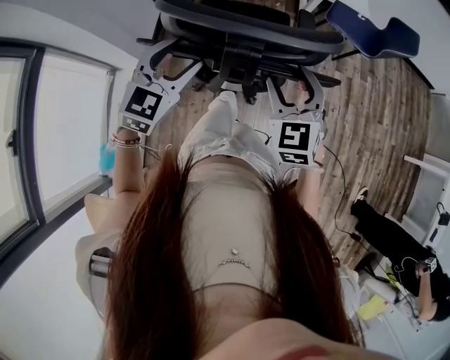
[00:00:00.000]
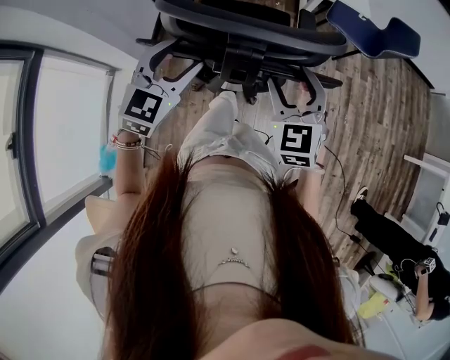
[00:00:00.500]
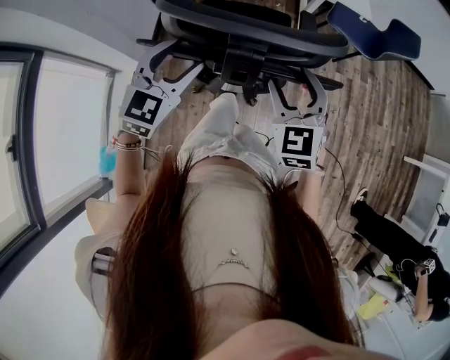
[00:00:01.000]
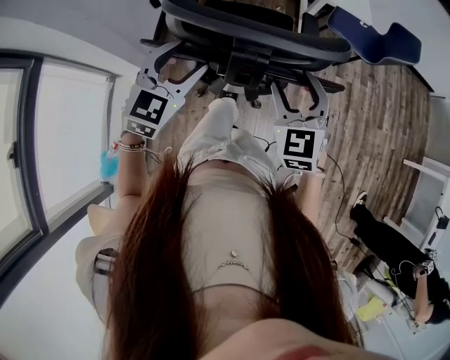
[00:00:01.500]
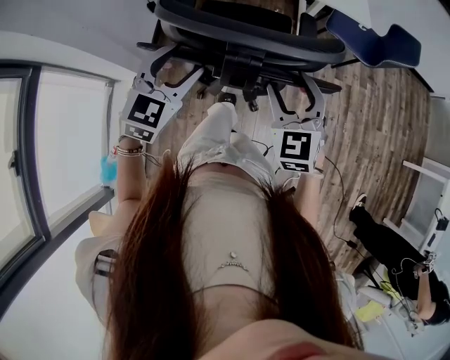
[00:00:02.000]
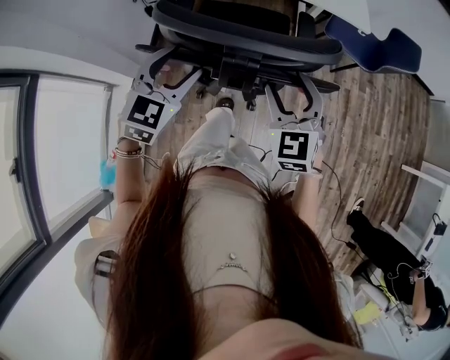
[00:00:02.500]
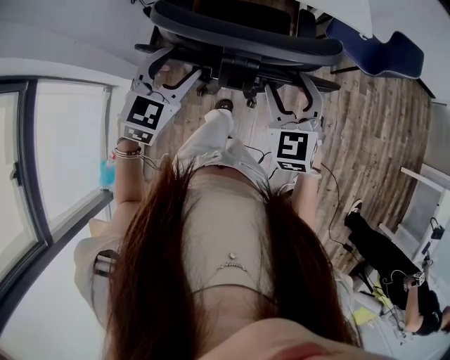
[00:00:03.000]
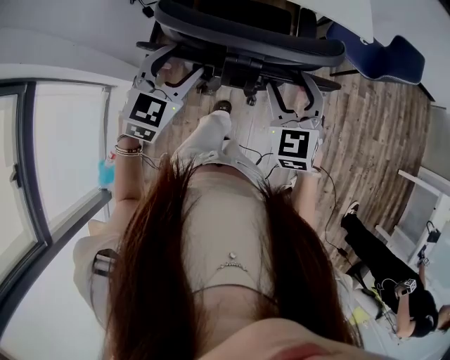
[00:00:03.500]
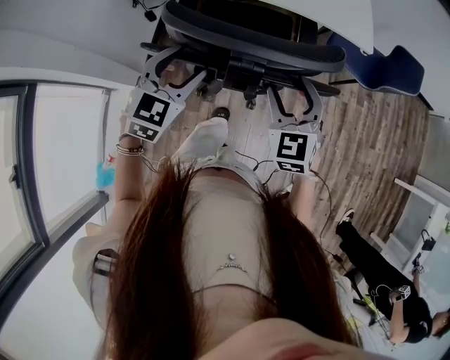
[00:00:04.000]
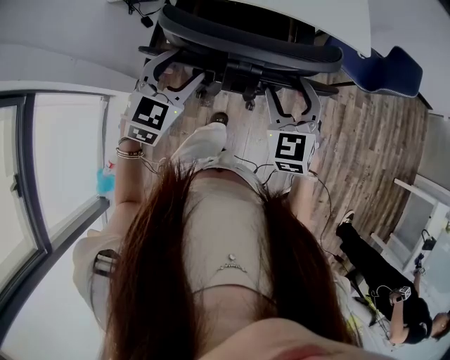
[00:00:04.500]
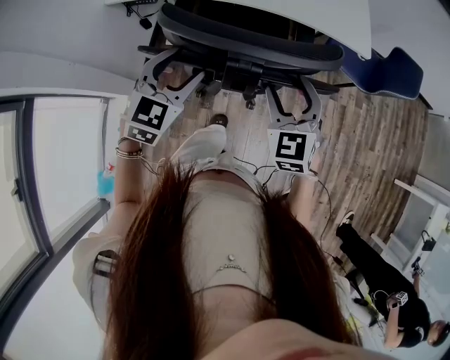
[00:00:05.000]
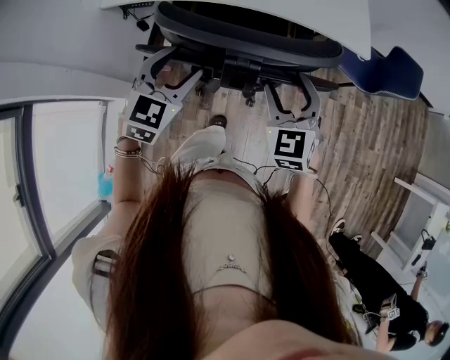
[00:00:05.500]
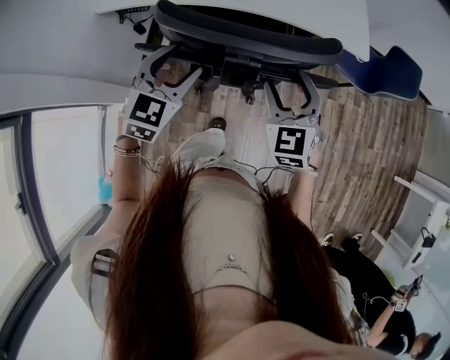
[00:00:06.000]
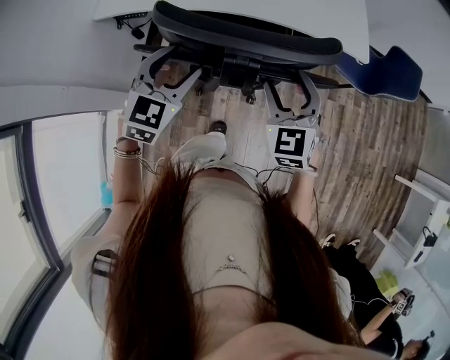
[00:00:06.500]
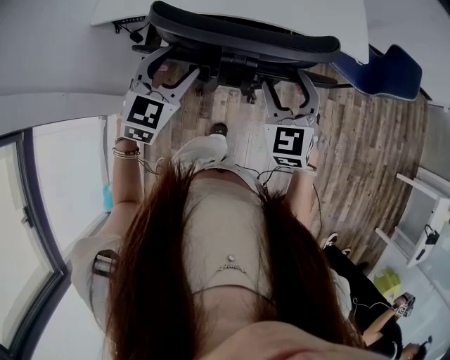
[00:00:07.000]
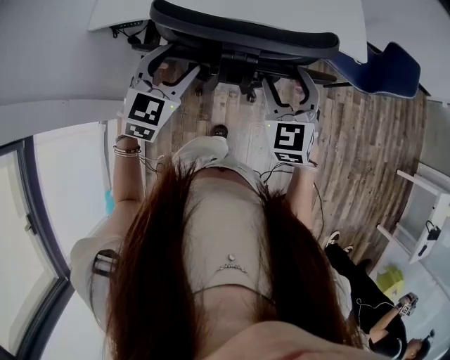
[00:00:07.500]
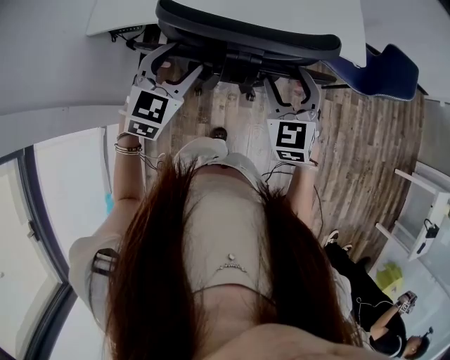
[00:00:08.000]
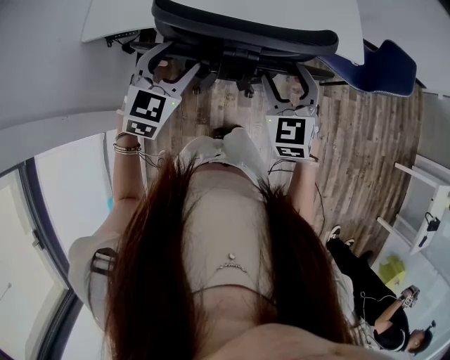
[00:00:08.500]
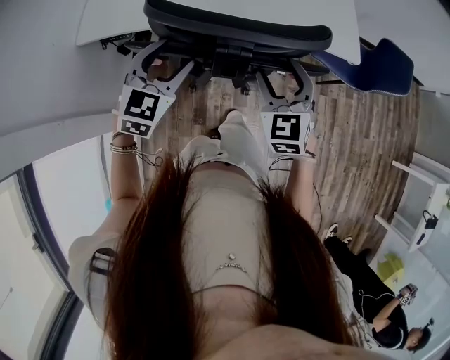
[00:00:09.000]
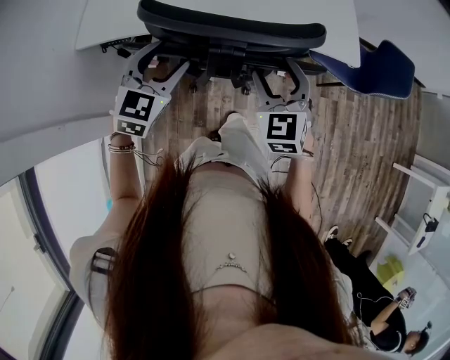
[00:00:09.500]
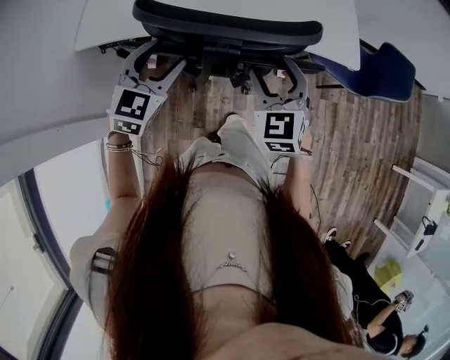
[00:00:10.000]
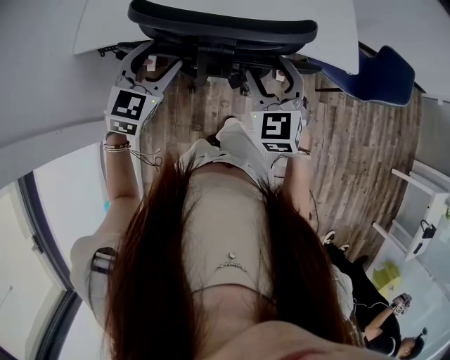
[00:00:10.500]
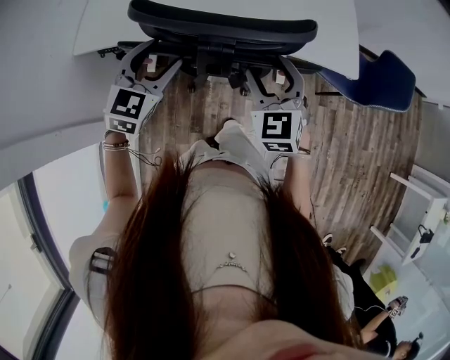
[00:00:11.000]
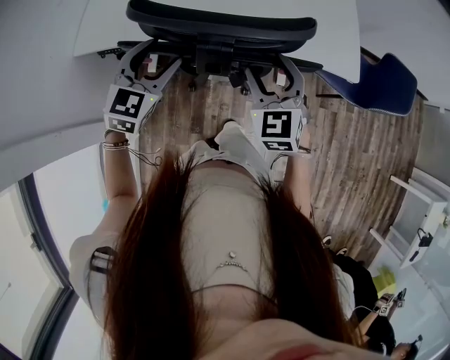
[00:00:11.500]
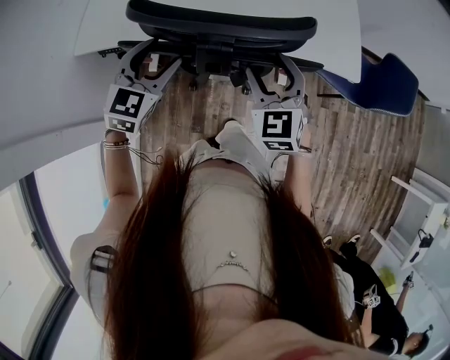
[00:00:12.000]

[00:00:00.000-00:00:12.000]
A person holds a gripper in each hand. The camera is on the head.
00:00:00.000 to 00:00:02.000: Both grippers travel together forward, approximately 5 cm.
00:00:02.000 to 00:00:04.000: Both grippers travel together forward, some 10 cm.
00:00:04.000 to 00:00:06.000: Both grippers move forward, about 10 cm.
00:00:06.000 to 00:00:08.000: Both grippers move forward, roughly 10 cm.
00:00:08.000 to 00:00:10.000: The two grippers go approximately 5 cm forward.
00:00:10.000 to 00:00:12.000: The grippers make only small movements.

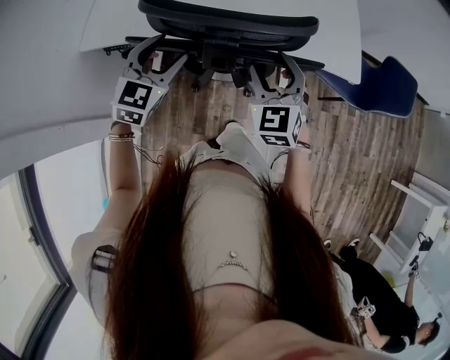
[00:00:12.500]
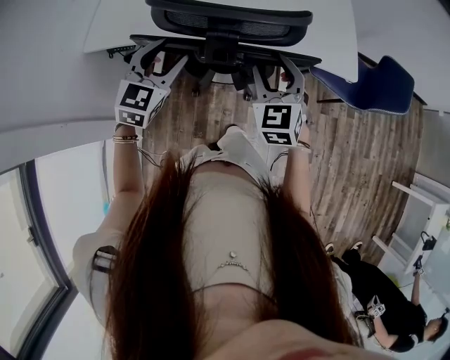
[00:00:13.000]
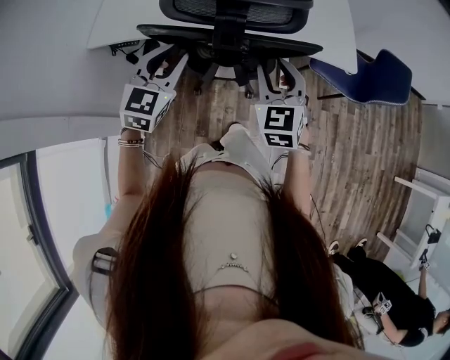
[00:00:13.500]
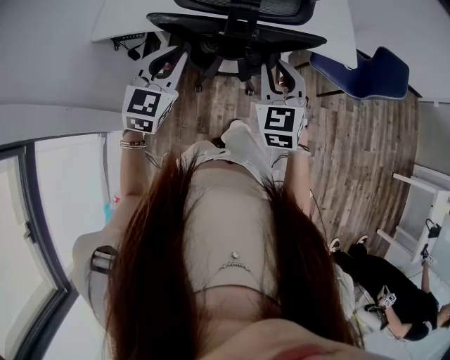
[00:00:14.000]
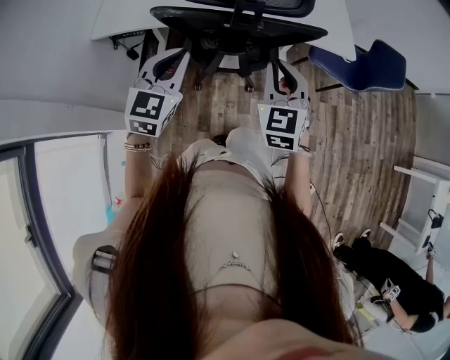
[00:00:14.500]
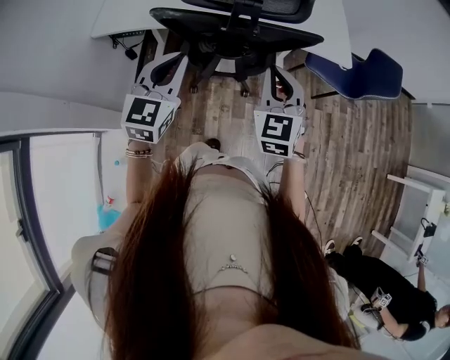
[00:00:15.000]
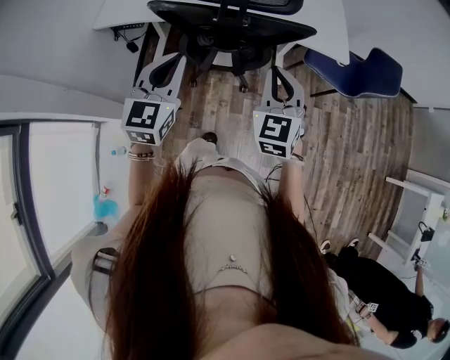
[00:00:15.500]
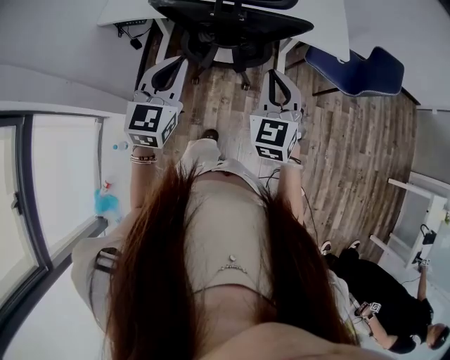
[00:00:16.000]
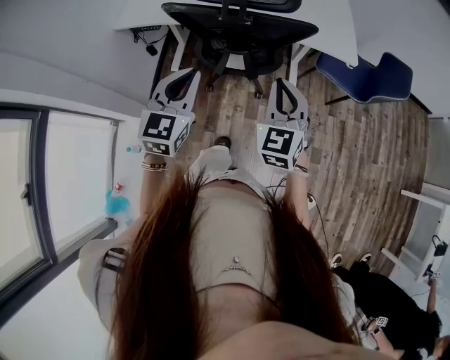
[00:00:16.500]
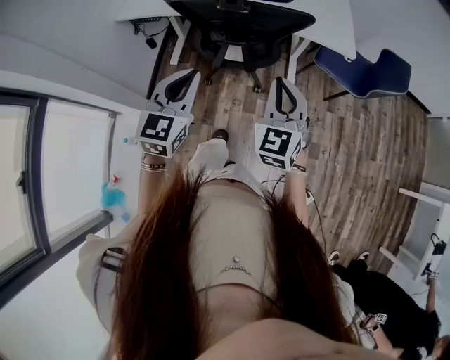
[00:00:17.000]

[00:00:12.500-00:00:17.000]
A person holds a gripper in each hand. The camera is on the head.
00:00:12.500 to 00:00:14.500: The grippers both shift backward by approximately 15 cm. The right gripper closes its fingers. The left gripper closes its fingers.
00:00:14.500 to 00:00:17.000: The two grippers go about 15 cm backward and to the right.

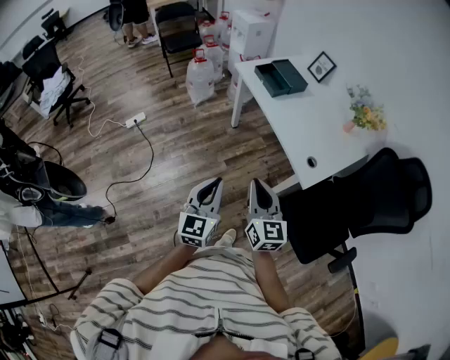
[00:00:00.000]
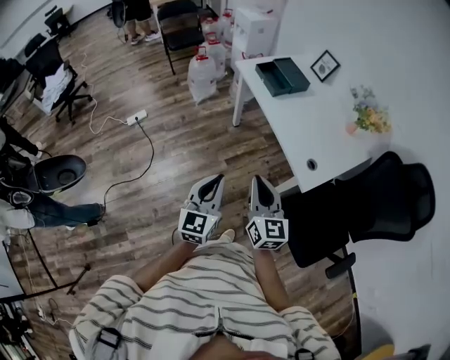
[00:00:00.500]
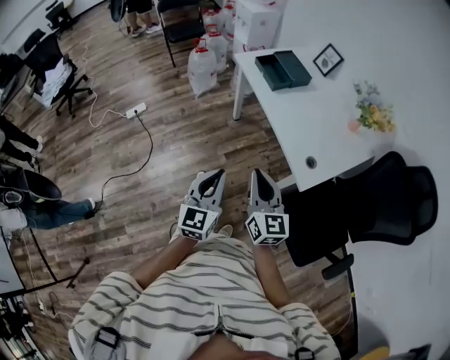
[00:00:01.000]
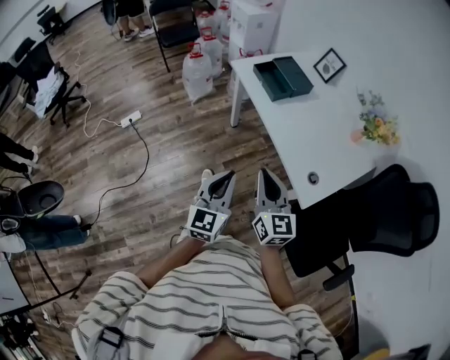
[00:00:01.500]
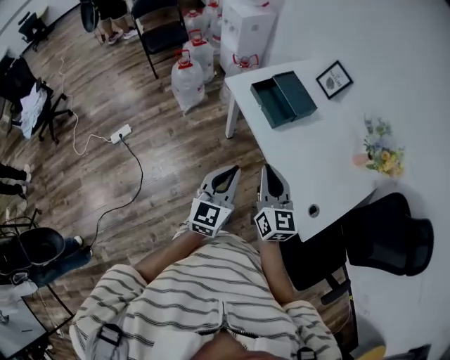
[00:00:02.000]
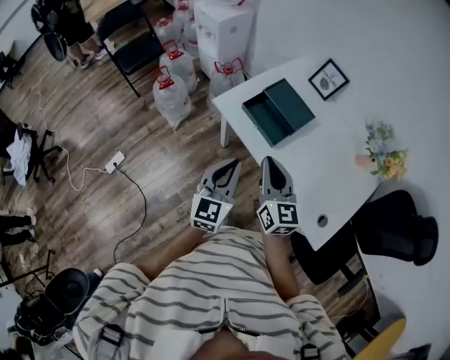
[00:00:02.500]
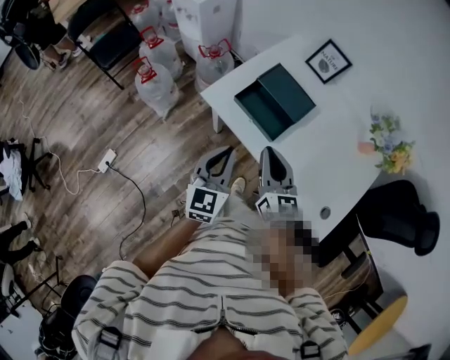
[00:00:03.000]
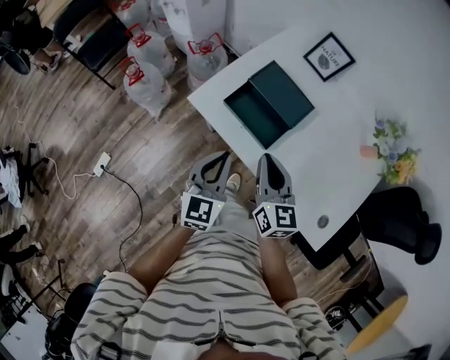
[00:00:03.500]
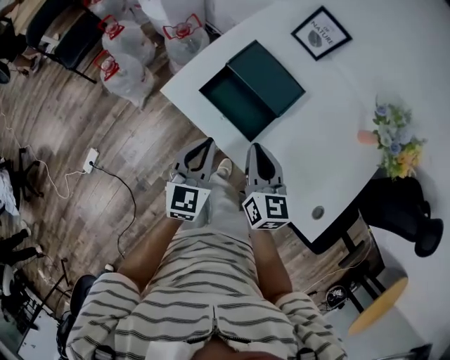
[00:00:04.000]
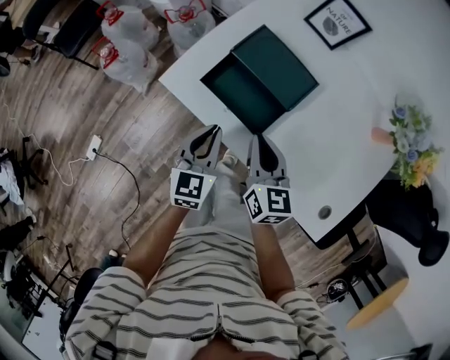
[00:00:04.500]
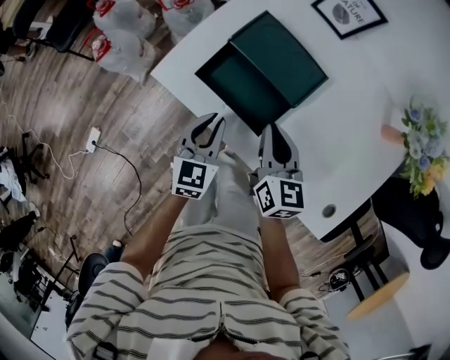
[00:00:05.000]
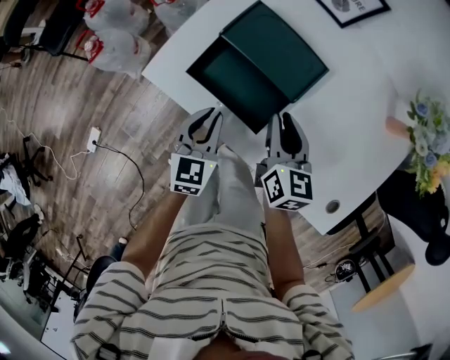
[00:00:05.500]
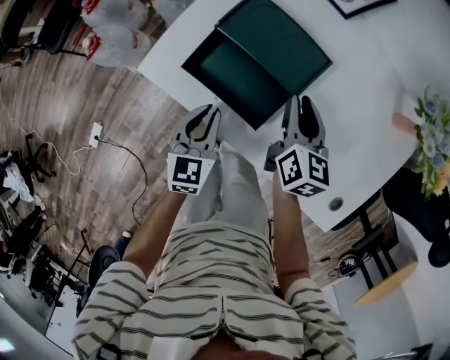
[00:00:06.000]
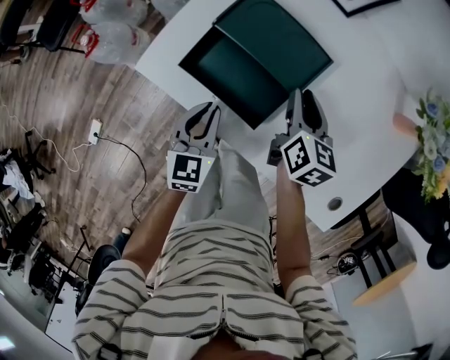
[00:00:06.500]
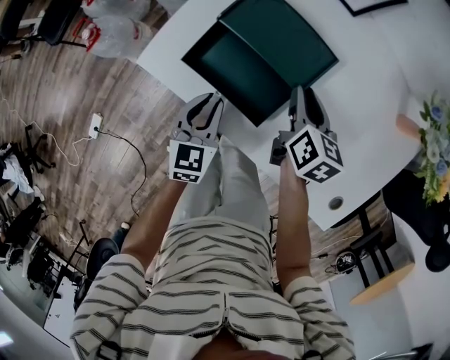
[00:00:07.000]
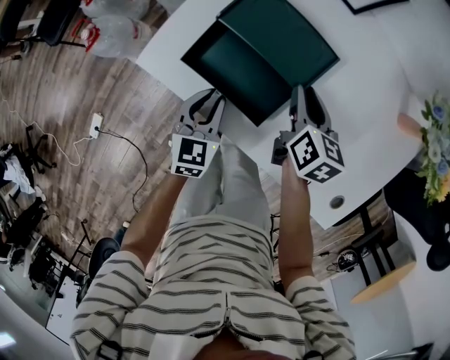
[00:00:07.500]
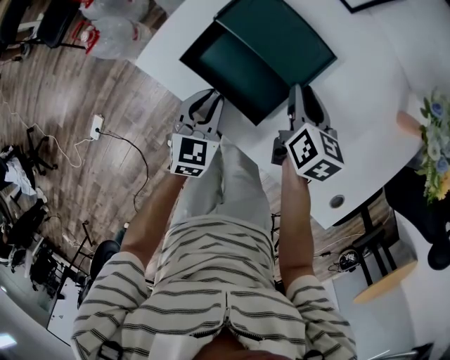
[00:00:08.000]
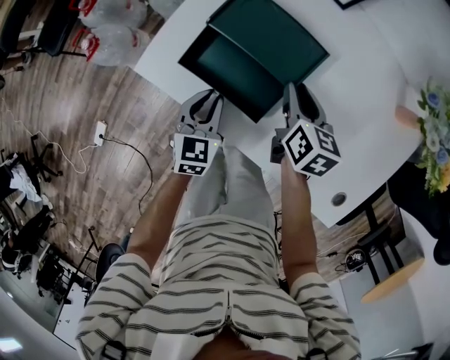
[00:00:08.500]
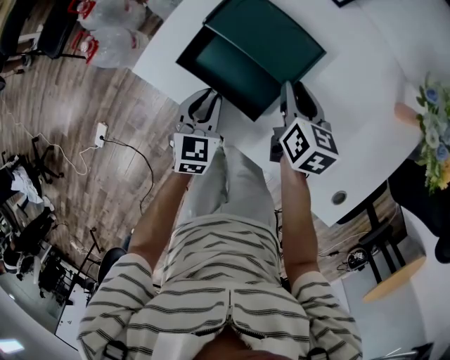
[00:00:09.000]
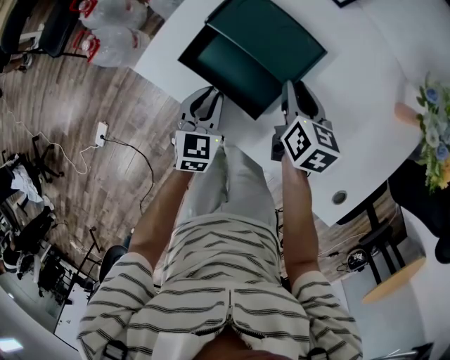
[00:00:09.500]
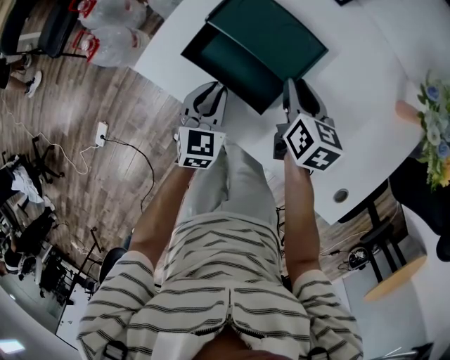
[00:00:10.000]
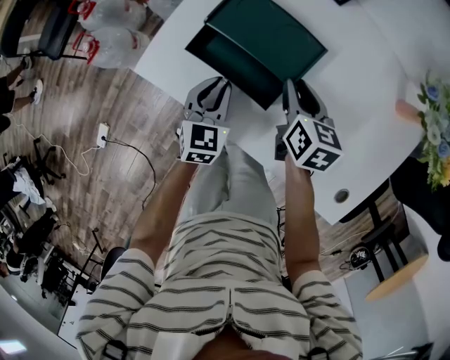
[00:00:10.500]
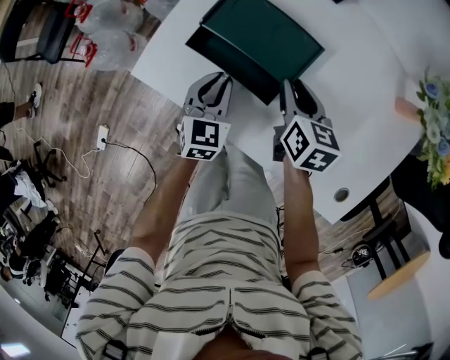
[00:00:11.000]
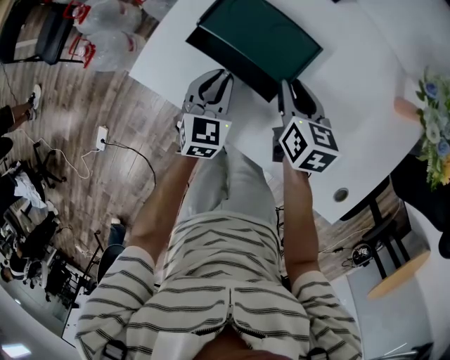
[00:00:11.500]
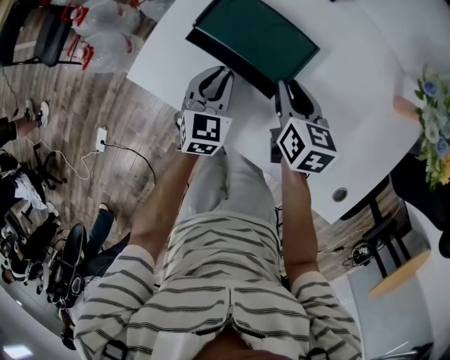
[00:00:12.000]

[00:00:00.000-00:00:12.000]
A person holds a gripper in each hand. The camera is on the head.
00:00:00.000 to 00:00:02.000: Both grippers travel together forward, some 35 cm.
00:00:02.000 to 00:00:04.000: The right gripper is displaced forward and downward by some 30 cm, and changes its angle by roughly 30 degrees. The left gripper shifts approximately 30 cm forward, and changes its angle by roughly 20 degrees.
00:00:04.000 to 00:00:06.000: The right gripper heads forward, downward and to the right, covering roughly 15 cm, while the left gripper goes approximately 15 cm downward and forward.
00:00:06.000 to 00:00:10.000: The grippers move only a little.
00:00:10.000 to 00:00:12.000: The left gripper is displaced forward by approximately 5 cm.
